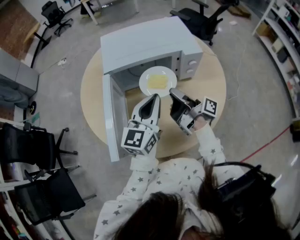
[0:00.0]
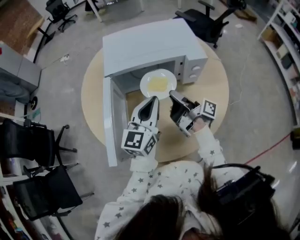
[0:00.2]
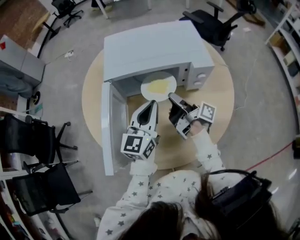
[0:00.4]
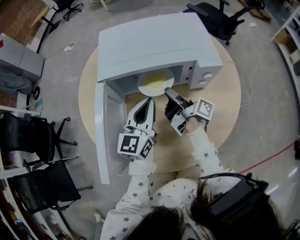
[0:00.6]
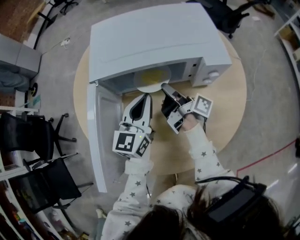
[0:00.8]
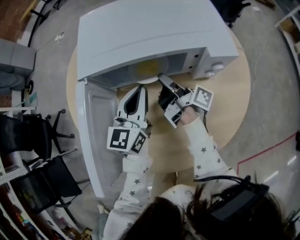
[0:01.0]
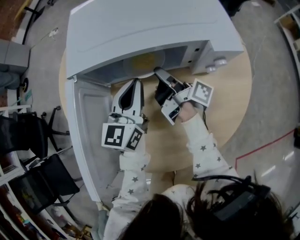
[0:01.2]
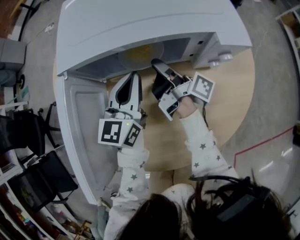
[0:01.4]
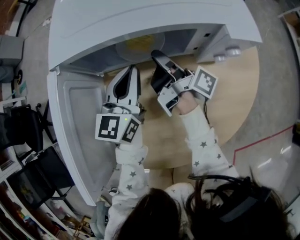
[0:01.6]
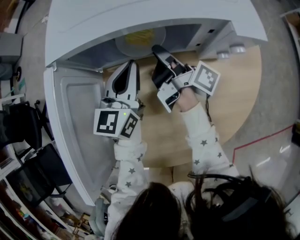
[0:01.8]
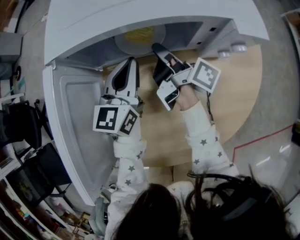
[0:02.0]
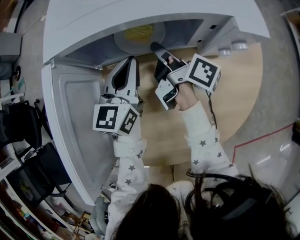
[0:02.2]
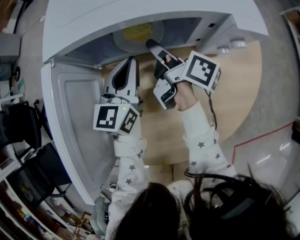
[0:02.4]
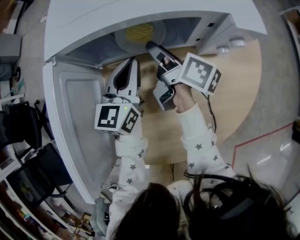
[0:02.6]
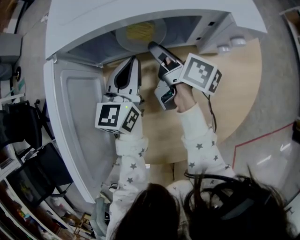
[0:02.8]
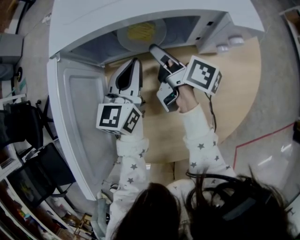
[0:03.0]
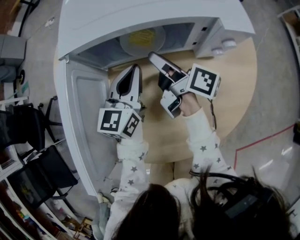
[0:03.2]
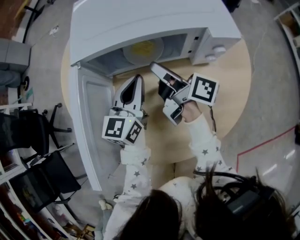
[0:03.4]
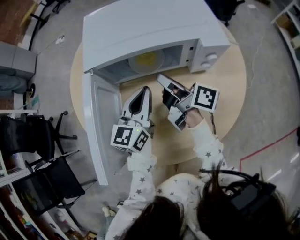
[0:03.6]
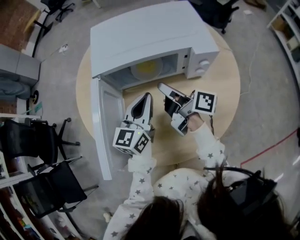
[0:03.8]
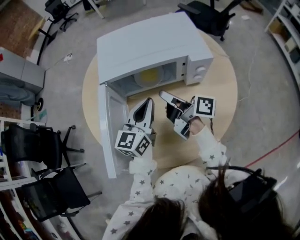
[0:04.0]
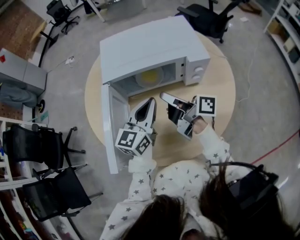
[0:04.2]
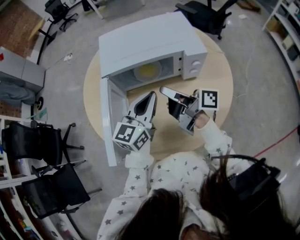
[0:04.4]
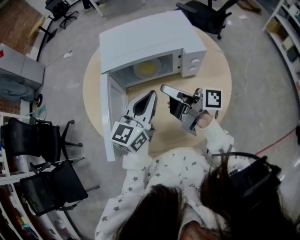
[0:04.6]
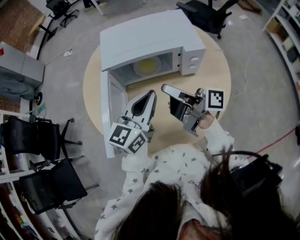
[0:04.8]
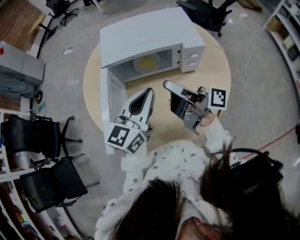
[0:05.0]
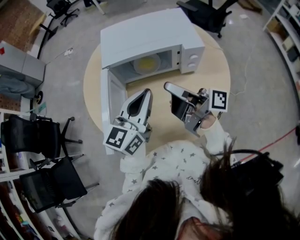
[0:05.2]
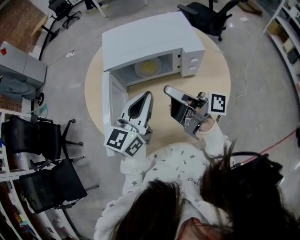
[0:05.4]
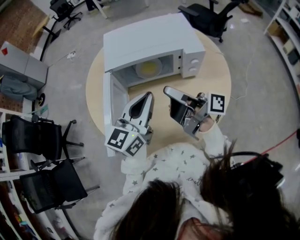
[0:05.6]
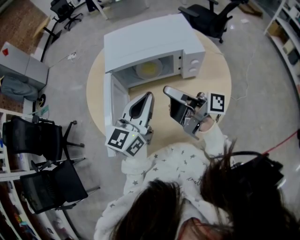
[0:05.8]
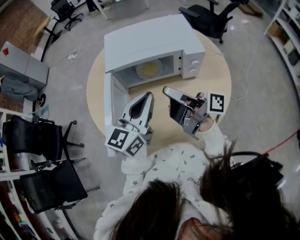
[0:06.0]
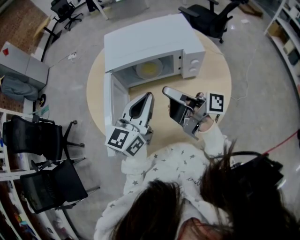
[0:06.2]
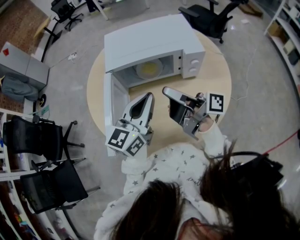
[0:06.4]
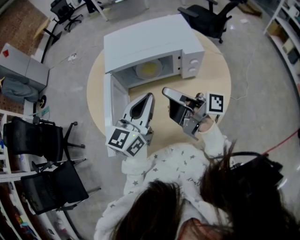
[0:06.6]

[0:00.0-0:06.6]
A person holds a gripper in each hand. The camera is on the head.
0:00.0 to 0:01.6: The left gripper changes place by some 25 cm.
0:01.6 to 0:03.2: The left gripper changes place by about 5 cm.
0:03.2 to 0:05.0: The left gripper heads upward, covering roughly 20 cm.

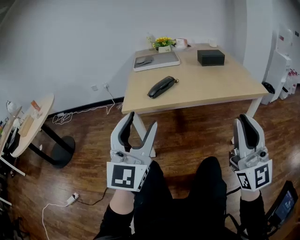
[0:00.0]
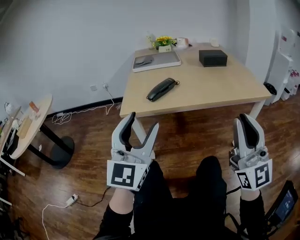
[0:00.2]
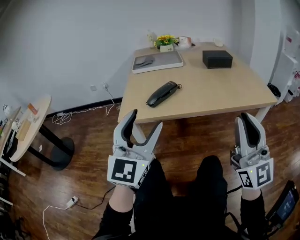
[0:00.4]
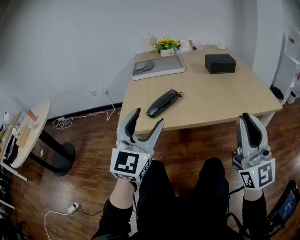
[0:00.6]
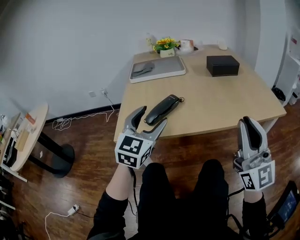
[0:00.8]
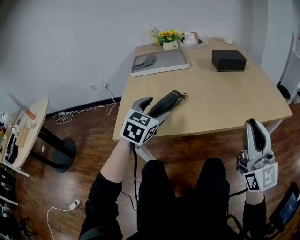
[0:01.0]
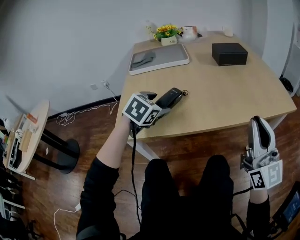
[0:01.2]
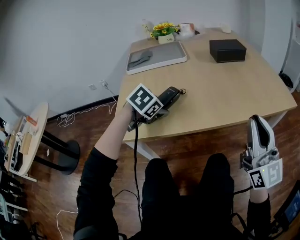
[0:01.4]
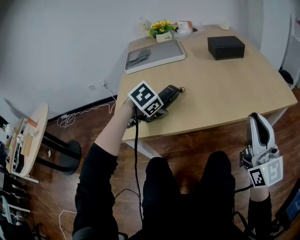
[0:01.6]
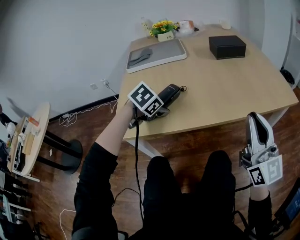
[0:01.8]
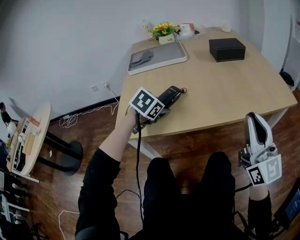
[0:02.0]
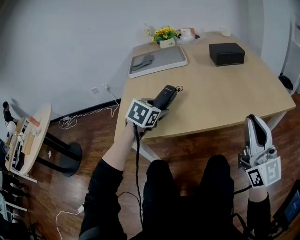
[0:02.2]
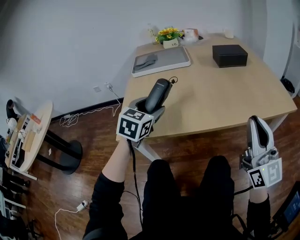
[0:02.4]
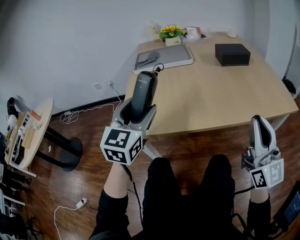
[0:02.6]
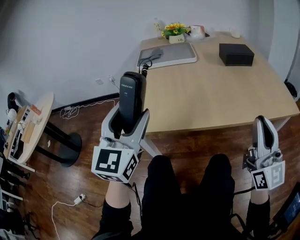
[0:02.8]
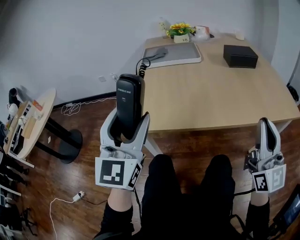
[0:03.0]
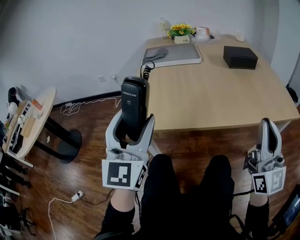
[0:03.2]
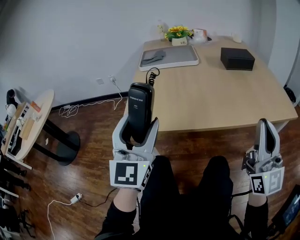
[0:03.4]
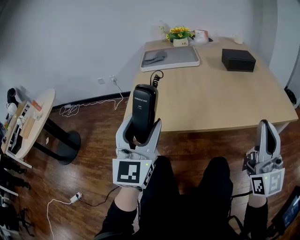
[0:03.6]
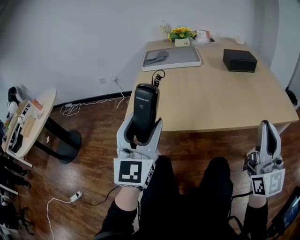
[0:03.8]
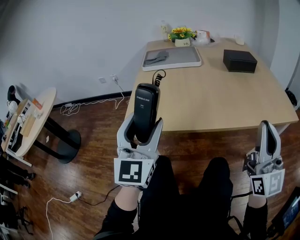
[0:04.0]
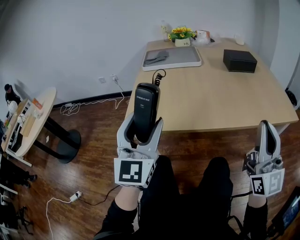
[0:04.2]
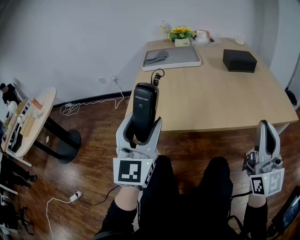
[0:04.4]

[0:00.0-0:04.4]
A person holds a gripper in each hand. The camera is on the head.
0:00.0 to 0:01.4: The left gripper heads forward and downward, covering roughly 40 cm, and tips its fingers downward by approximately 80 degrees; the right gripper is displaced forward by about 25 cm.
0:01.4 to 0:03.0: The left gripper is displaced upward and backward by about 25 cm, and tips its fingers upward by roughly 70 degrees.
0:03.0 to 0:04.4: There are only small adjustments of the grippers.

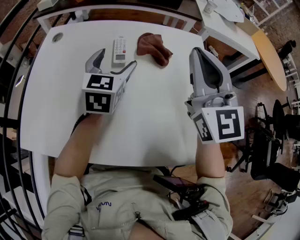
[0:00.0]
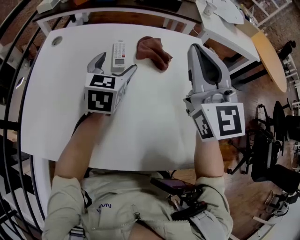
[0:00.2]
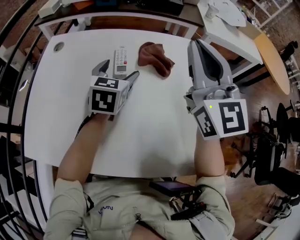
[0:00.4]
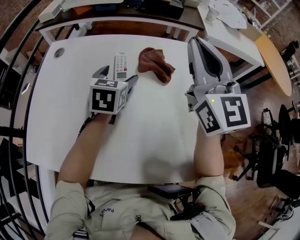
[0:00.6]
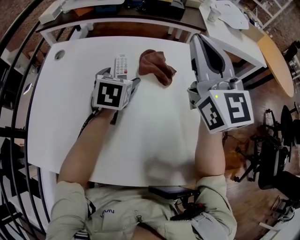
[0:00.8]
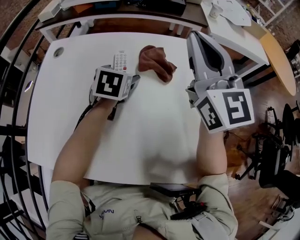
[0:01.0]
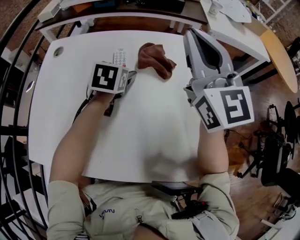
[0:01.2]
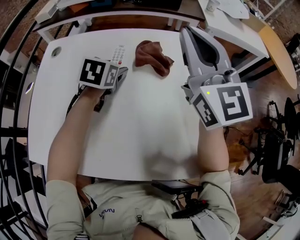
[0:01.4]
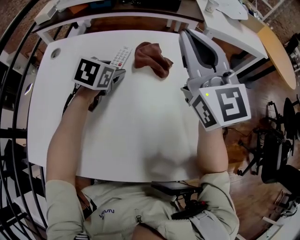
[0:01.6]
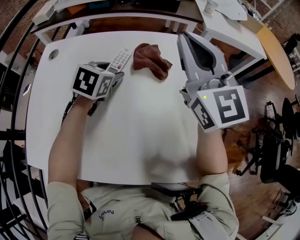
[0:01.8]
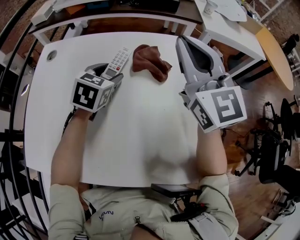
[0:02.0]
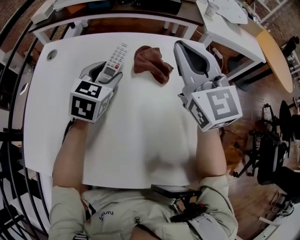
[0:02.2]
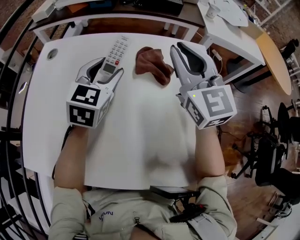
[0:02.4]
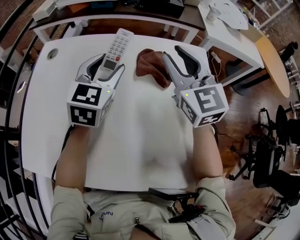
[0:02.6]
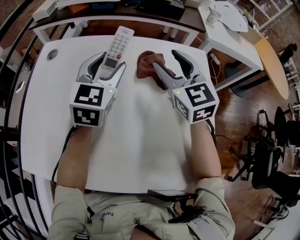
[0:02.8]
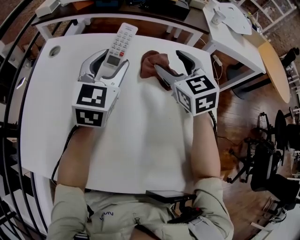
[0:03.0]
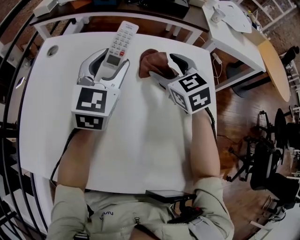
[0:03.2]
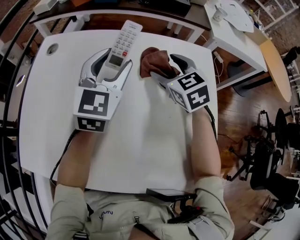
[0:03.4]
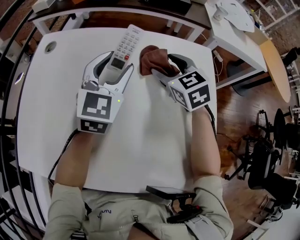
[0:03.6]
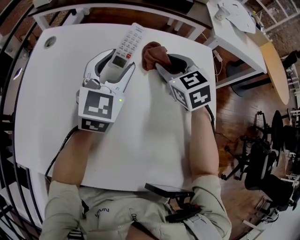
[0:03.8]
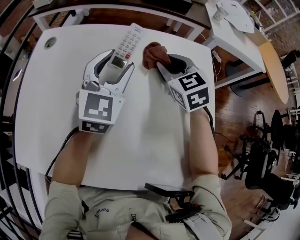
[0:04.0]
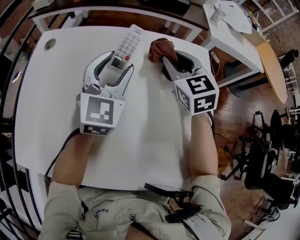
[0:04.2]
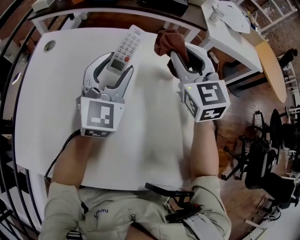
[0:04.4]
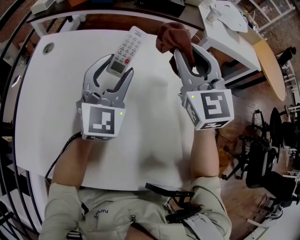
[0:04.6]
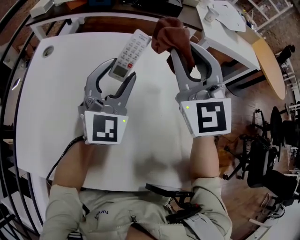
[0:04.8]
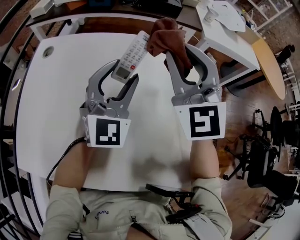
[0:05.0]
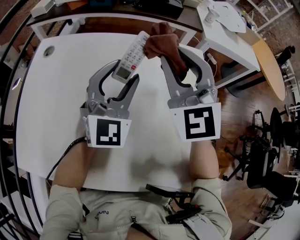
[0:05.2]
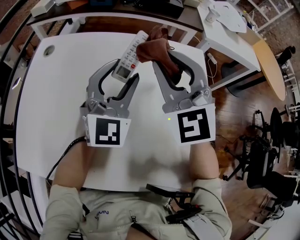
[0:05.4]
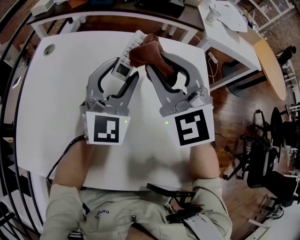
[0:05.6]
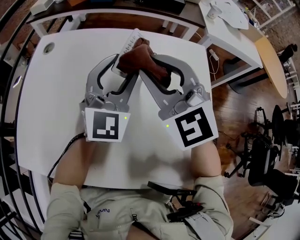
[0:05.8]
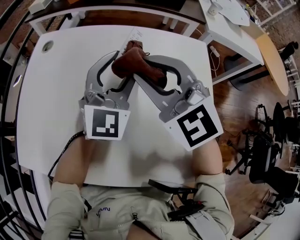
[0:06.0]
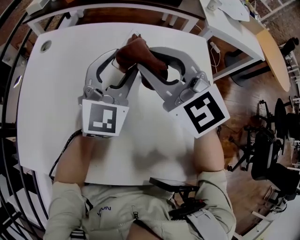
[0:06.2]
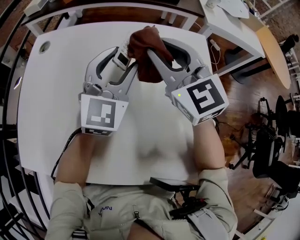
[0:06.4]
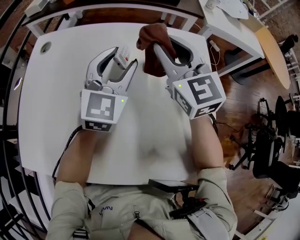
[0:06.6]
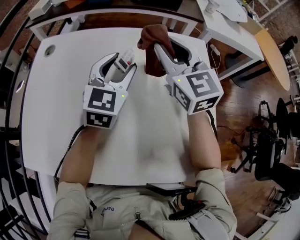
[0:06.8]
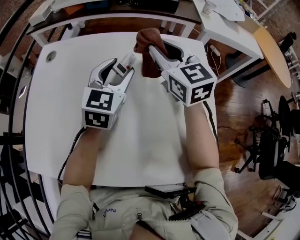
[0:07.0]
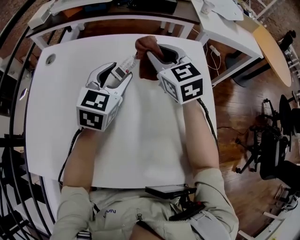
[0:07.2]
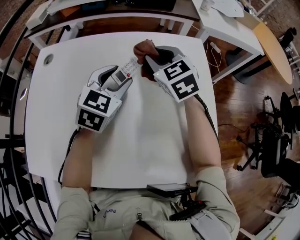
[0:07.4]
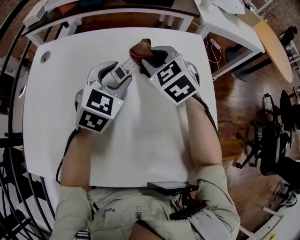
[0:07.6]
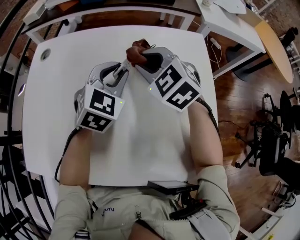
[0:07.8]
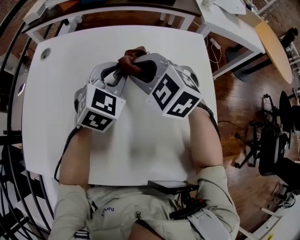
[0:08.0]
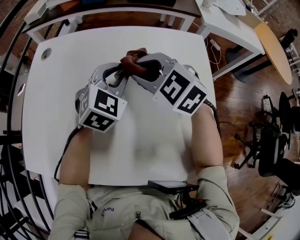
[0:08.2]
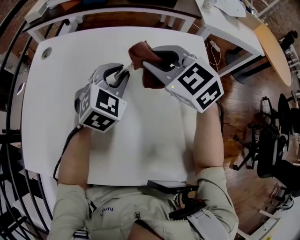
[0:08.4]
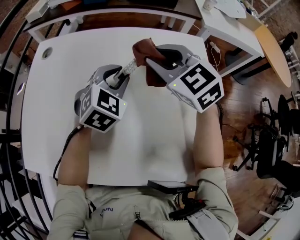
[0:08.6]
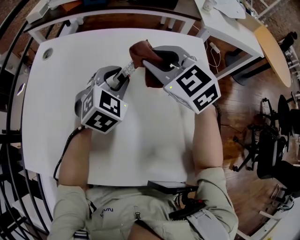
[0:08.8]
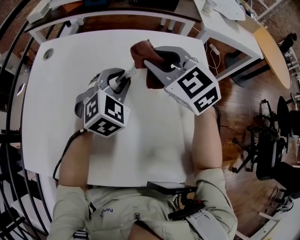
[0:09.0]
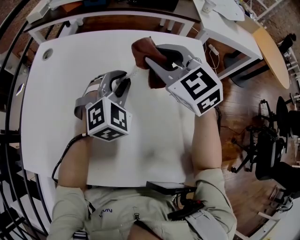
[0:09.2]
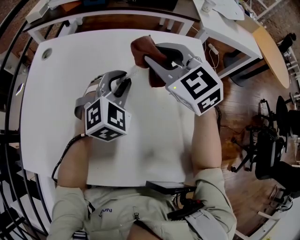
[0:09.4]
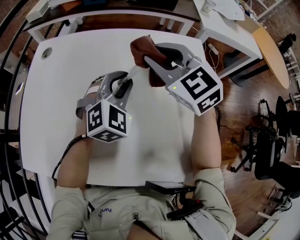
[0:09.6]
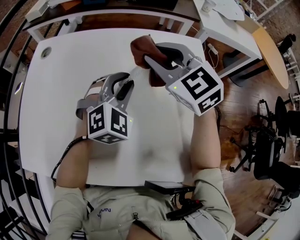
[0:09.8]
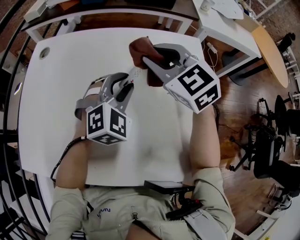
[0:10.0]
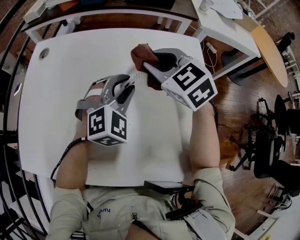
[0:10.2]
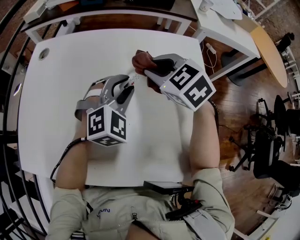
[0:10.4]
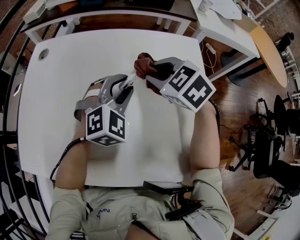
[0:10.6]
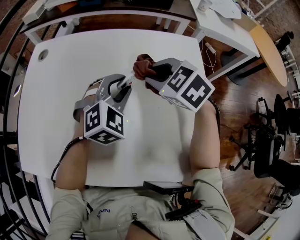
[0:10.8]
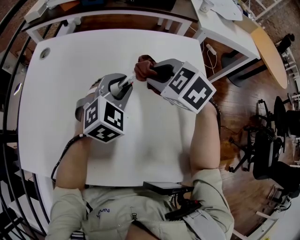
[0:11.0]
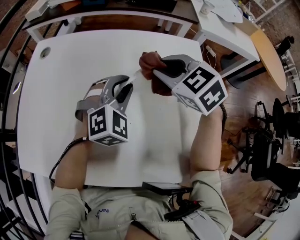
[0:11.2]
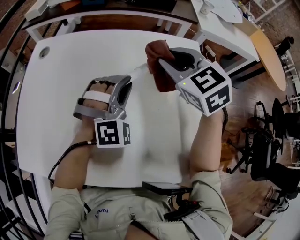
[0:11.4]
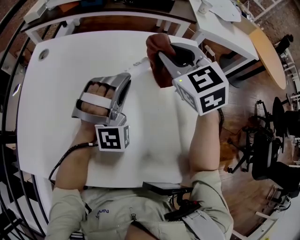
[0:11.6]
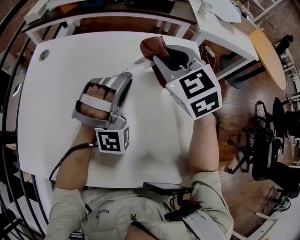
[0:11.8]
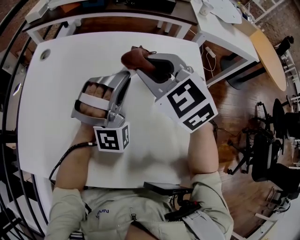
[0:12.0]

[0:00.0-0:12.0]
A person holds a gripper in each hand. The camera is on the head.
0:00.0 to 0:01.6: The left gripper heads downward and forward, covering some 10 cm, turns by some 30 degrees, and closes; the right gripper moves forward, about 5 cm.
0:01.6 to 0:03.0: The right gripper travels downward and forward by about 20 cm, tilts its fingers approximately 30 degrees downward, and opens its fingers; the left gripper is displaced upward by about 10 cm, and points its fingers about 30 degrees further upward.
0:03.0 to 0:04.4: The right gripper heads upward, covering approximately 5 cm, and closes.
0:04.4 to 0:06.0: The right gripper heads to the left and backward, covering about 15 cm, and rotates about 30 degrees.
0:06.0 to 0:07.6: The right gripper travels downward, forward and to the right by approximately 15 cm, and rotates roughly 30 degrees, while the left gripper heads downward, covering approximately 10 cm, and rotates approximately 30 degrees.
0:07.6 to 0:09.0: The right gripper shifts about 5 cm upward.
0:09.0 to 0:10.4: The right gripper goes roughly 5 cm downward.
0:10.4 to 0:12.0: The two grippers go some 5 cm upward. The left gripper turns by approximately 40 degrees.
